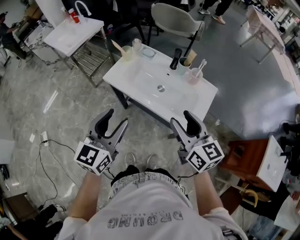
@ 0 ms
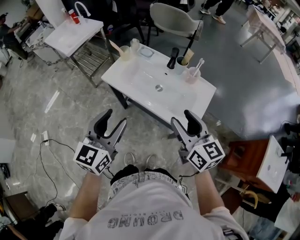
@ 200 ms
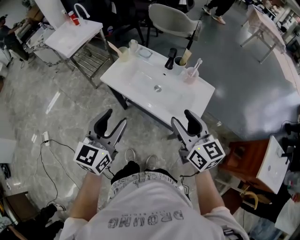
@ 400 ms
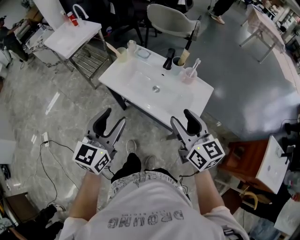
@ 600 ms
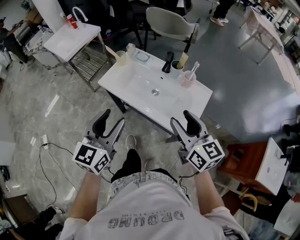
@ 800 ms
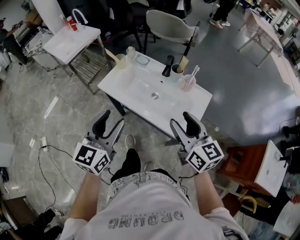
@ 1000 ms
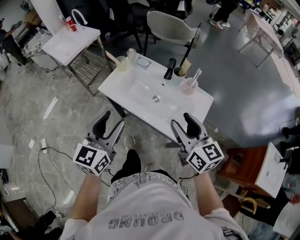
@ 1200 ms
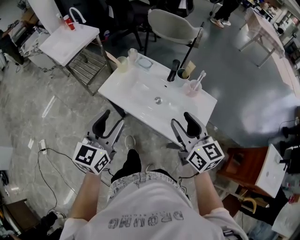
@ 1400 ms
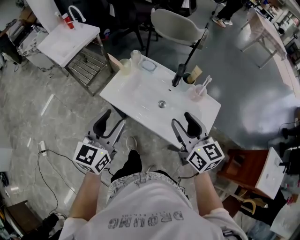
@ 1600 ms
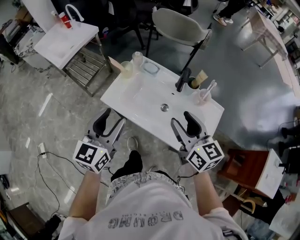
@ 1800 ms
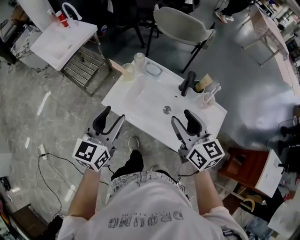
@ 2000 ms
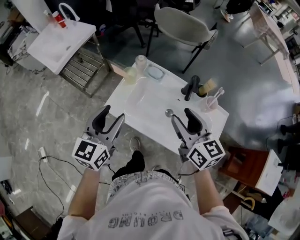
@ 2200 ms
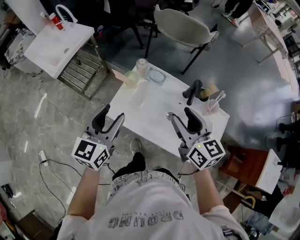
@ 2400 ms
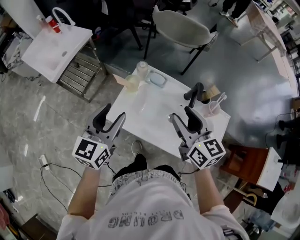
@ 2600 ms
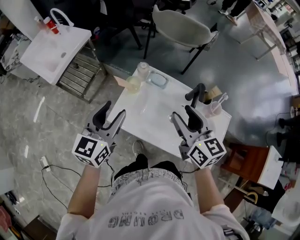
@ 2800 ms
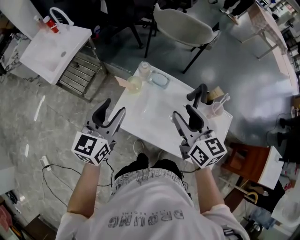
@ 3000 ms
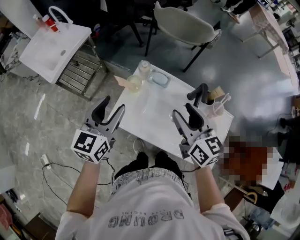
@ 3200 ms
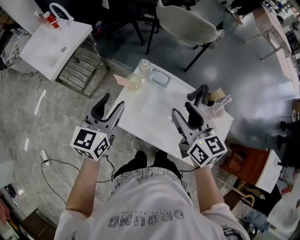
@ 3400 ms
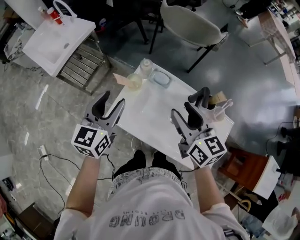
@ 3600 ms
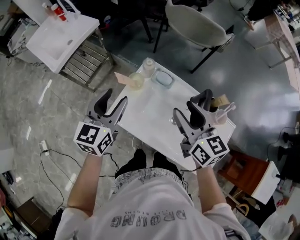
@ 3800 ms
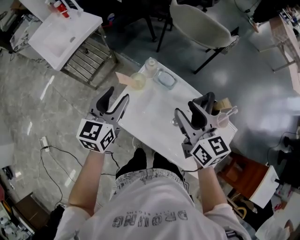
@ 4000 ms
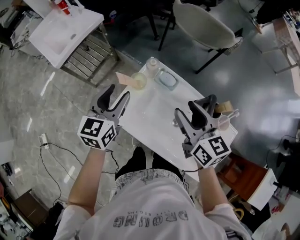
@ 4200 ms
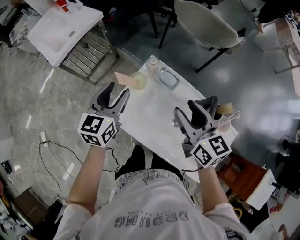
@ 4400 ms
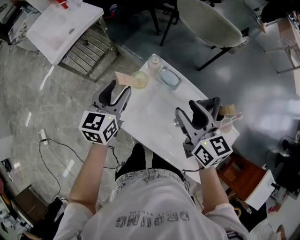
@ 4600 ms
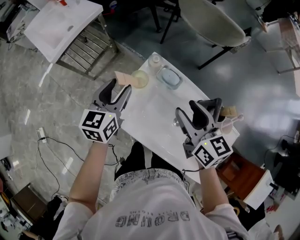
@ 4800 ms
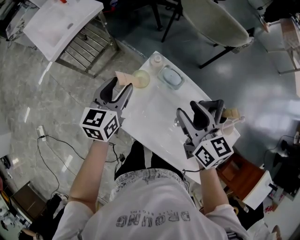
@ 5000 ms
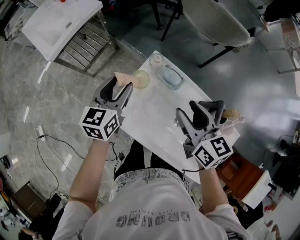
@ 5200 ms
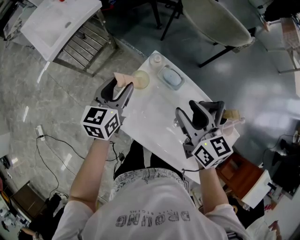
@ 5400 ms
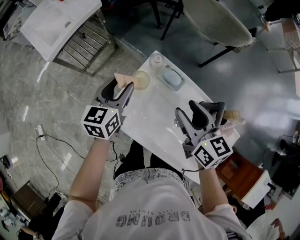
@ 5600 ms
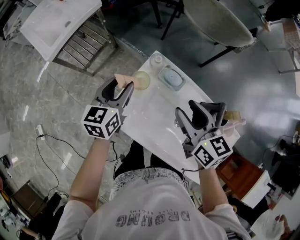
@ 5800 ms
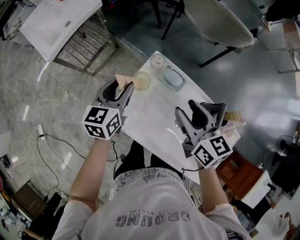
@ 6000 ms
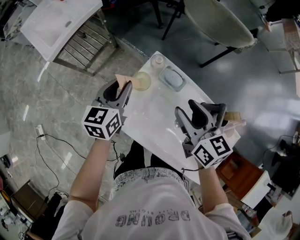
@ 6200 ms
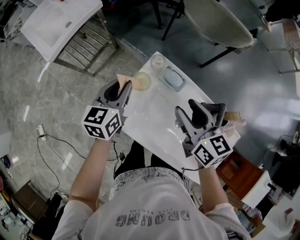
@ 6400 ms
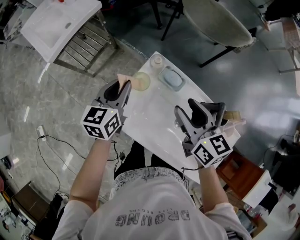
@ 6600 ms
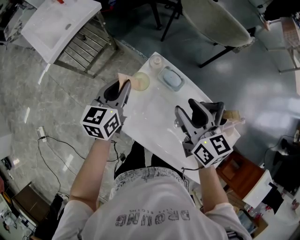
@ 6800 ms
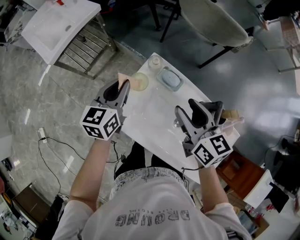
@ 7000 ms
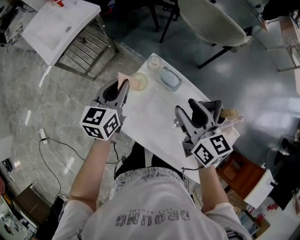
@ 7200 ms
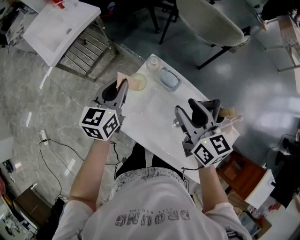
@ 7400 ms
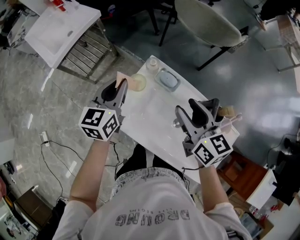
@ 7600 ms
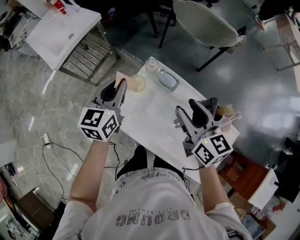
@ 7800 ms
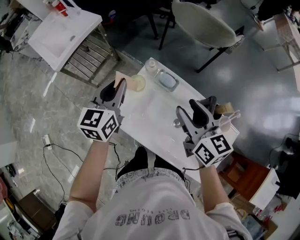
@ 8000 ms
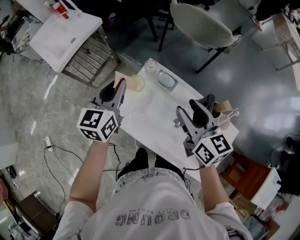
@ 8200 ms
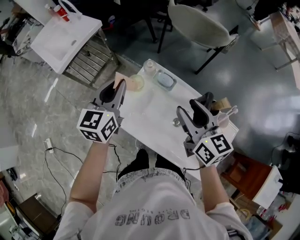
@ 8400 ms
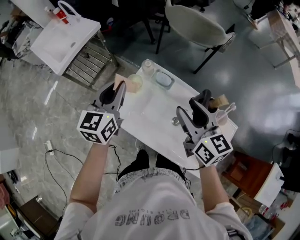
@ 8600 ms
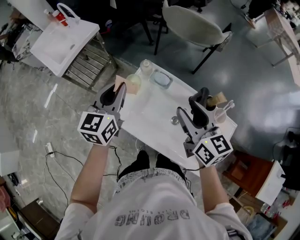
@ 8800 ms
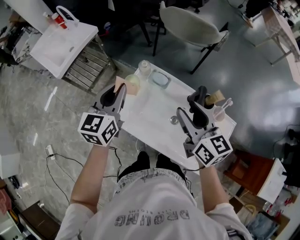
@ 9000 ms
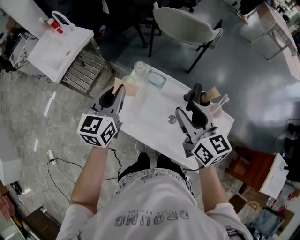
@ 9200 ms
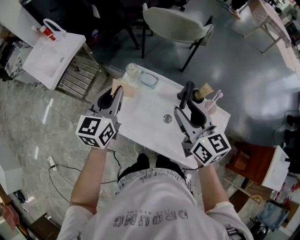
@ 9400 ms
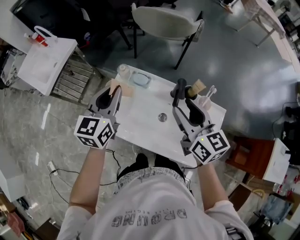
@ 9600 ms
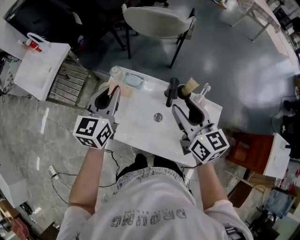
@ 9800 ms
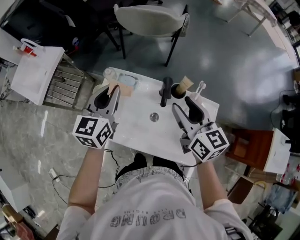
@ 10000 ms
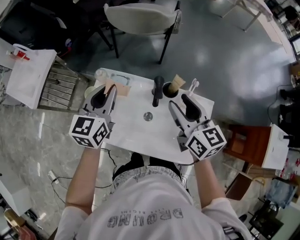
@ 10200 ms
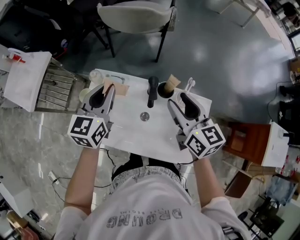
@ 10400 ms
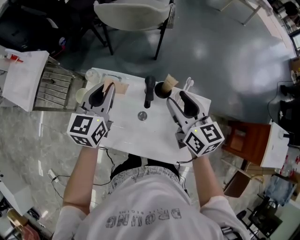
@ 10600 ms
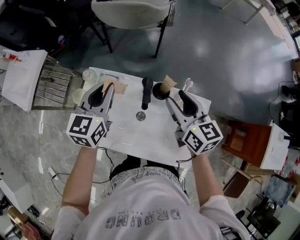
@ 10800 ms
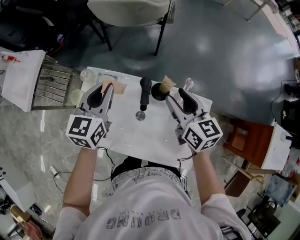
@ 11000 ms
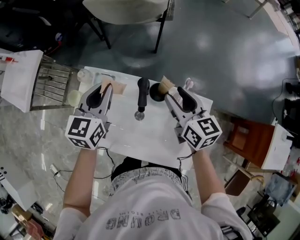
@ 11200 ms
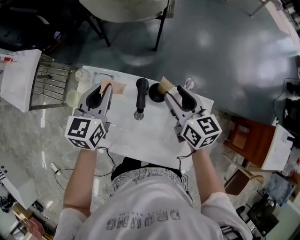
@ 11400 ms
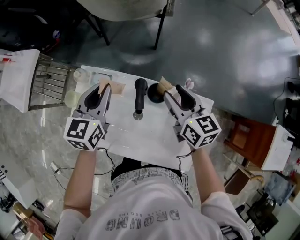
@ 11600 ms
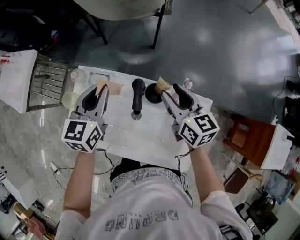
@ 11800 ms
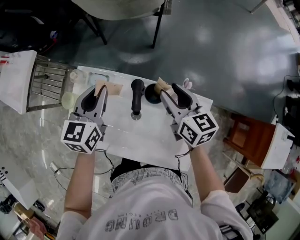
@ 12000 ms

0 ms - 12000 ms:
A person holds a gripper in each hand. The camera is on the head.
0 ms - 1600 ms: Both grippers move forward, roughly 10 cm.
1600 ms - 3000 ms: Both grippers move forward and to the left, some 20 cm.
3000 ms - 4400 ms: The left gripper moves forward and downward, about 10 cm. The right gripper is displaced forward by roughly 5 cm.
4400 ms - 6000 ms: The left gripper heads downward, covering roughly 5 cm.
6000 ms - 7600 ms: The left gripper goes some 5 cm upward, and closes its fingers.
7600 ms - 9000 ms: The left gripper moves upward and backward, some 10 cm; the right gripper heads backward, covering about 5 cm.
9000 ms - 10400 ms: The two grippers go some 15 cm to the right.
10400 ms - 12000 ms: The left gripper shifts approximately 5 cm downward, while the right gripper goes about 10 cm downward and forward.

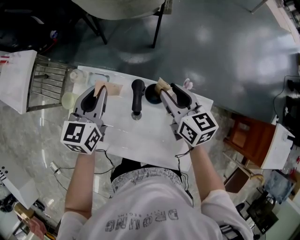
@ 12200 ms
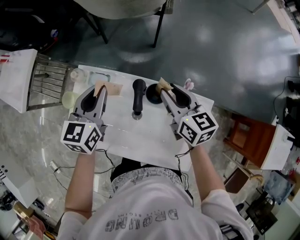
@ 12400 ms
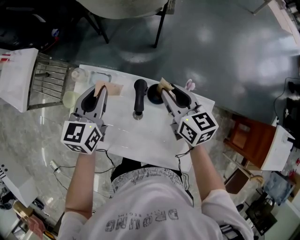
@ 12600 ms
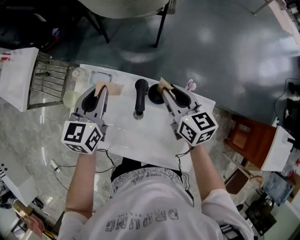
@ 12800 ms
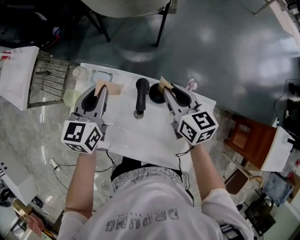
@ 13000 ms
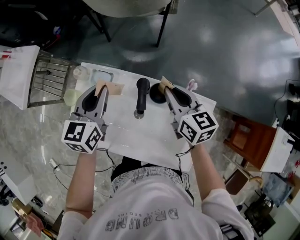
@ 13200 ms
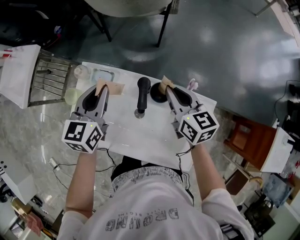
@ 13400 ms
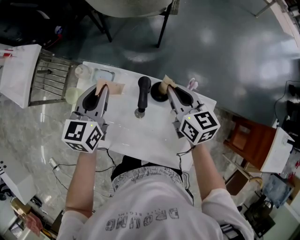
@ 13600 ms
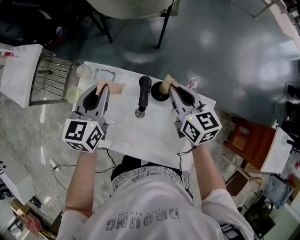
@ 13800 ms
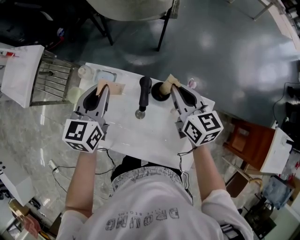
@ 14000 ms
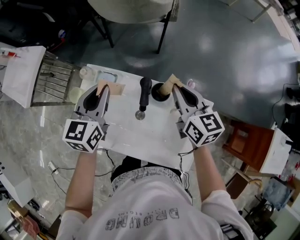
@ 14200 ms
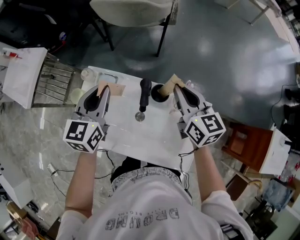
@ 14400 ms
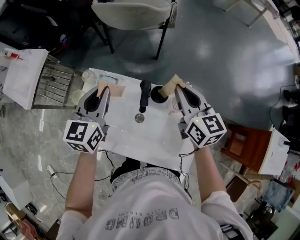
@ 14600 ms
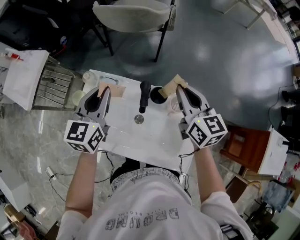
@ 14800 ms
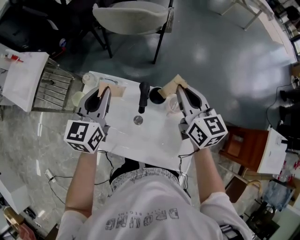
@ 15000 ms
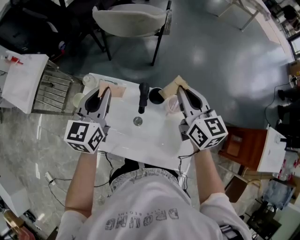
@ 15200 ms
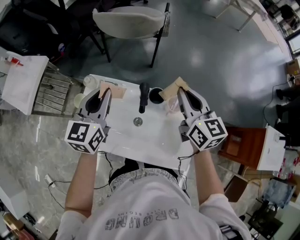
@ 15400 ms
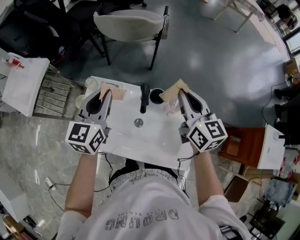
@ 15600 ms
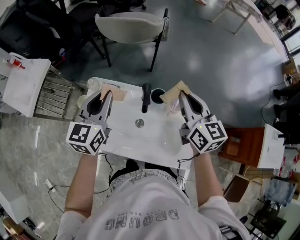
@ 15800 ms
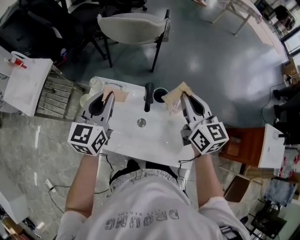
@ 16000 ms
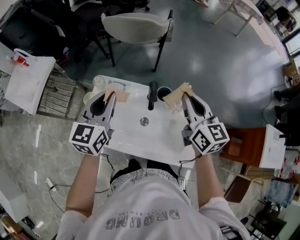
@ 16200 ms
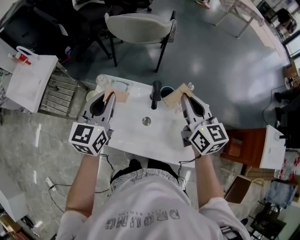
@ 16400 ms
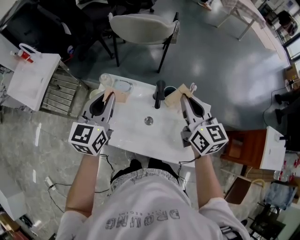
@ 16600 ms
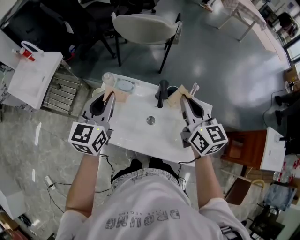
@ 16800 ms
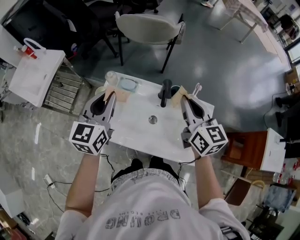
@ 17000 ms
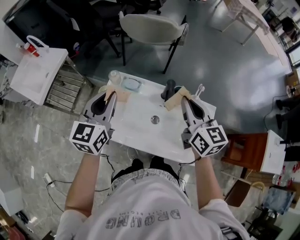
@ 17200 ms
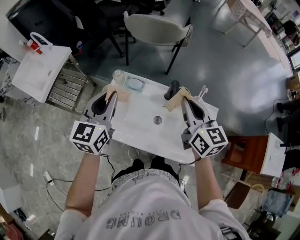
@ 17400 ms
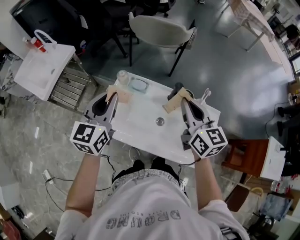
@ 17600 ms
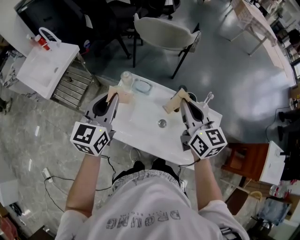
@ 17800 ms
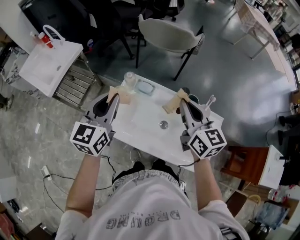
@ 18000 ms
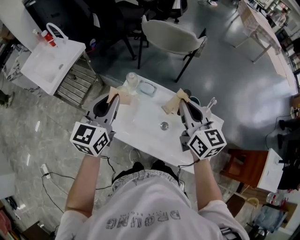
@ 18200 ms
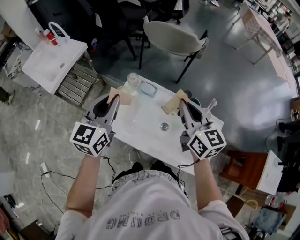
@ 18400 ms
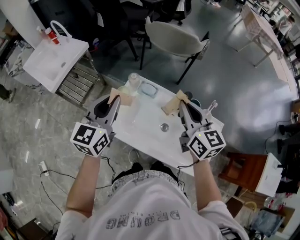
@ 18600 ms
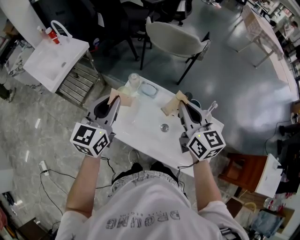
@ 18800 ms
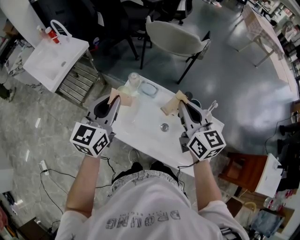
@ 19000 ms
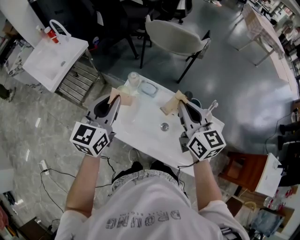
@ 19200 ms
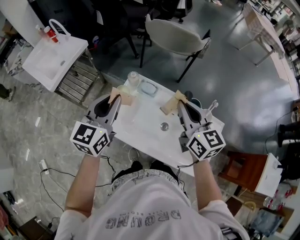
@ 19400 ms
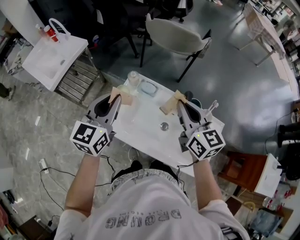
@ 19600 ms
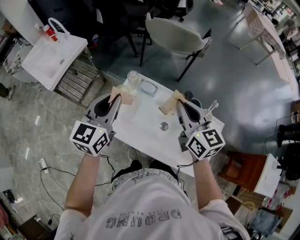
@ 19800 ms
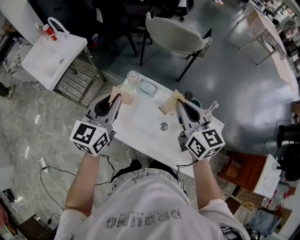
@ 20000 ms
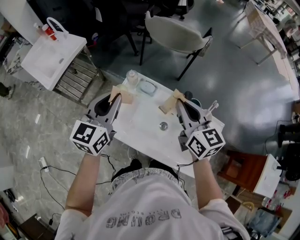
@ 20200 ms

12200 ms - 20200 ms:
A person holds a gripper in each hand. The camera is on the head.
12200 ms - 13800 ms: The right gripper closes up.
13800 ms - 15400 ms: The two grippers go about 10 cm upward.
15400 ms - 17000 ms: Both grippers travel together to the left and backward, about 10 cm.
17000 ms - 18600 ms: The grippers both shift to the left by roughly 10 cm.
18600 ms - 20200 ms: The grippers make only small movements.
